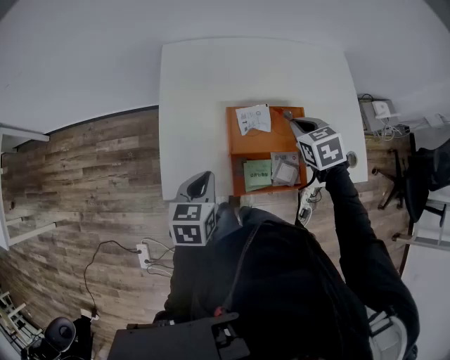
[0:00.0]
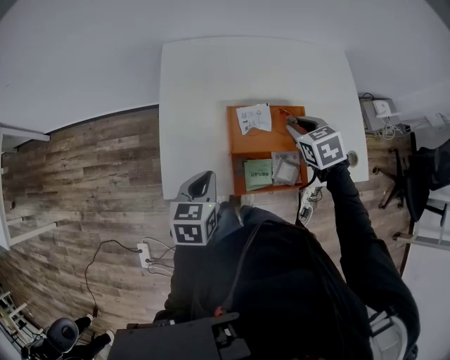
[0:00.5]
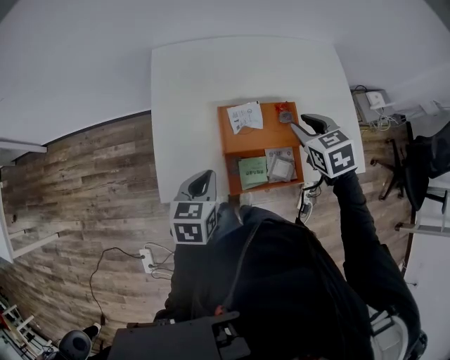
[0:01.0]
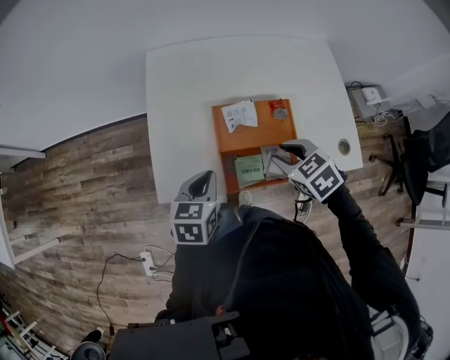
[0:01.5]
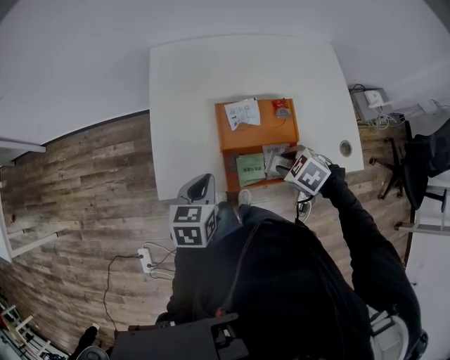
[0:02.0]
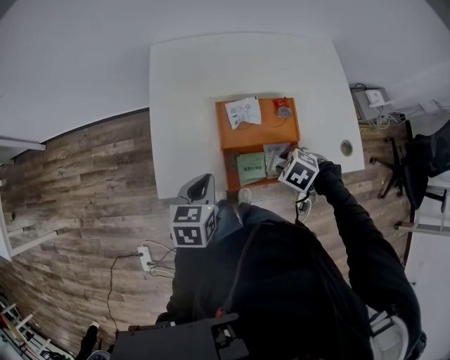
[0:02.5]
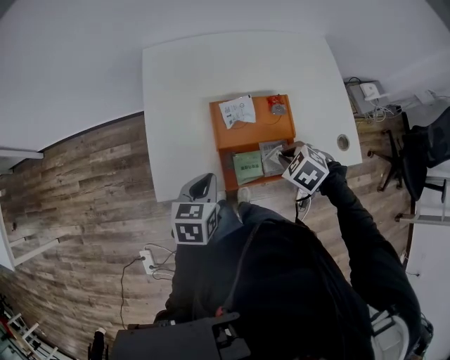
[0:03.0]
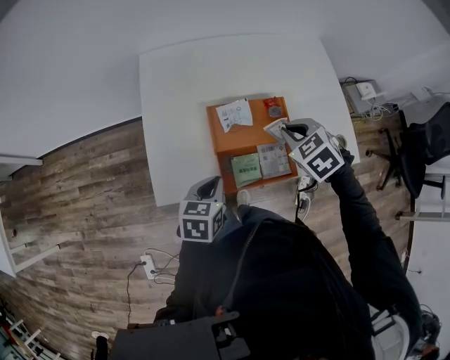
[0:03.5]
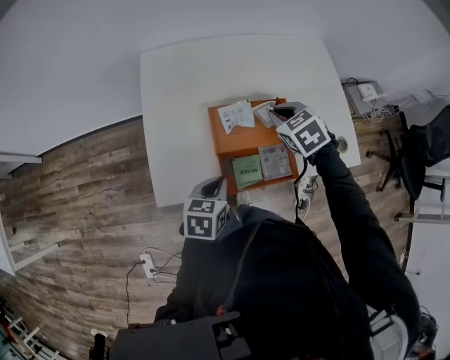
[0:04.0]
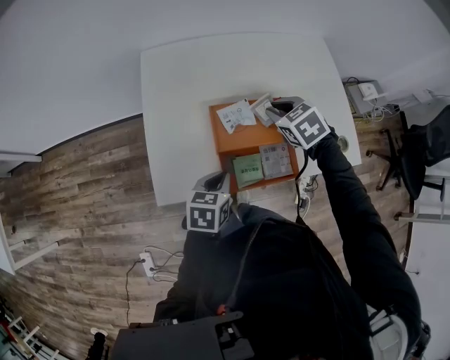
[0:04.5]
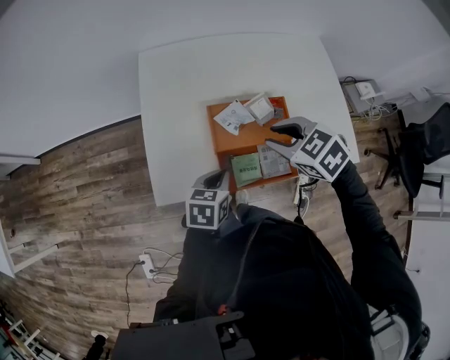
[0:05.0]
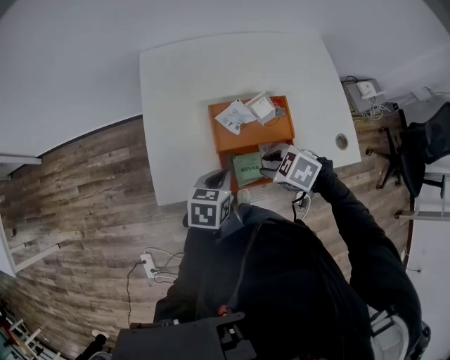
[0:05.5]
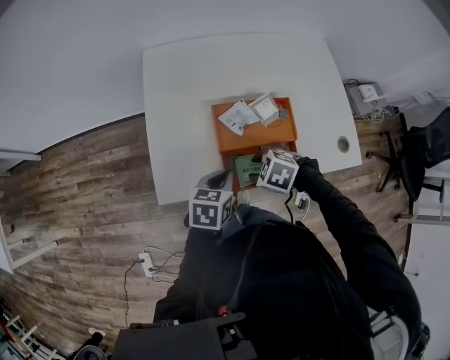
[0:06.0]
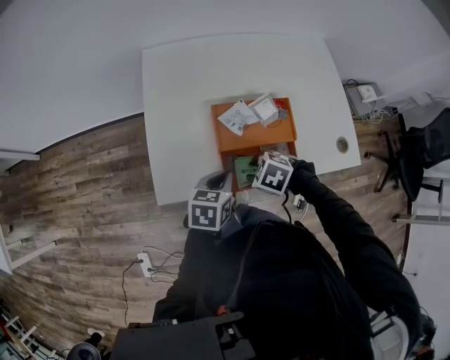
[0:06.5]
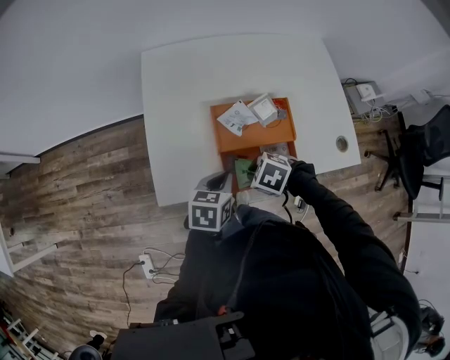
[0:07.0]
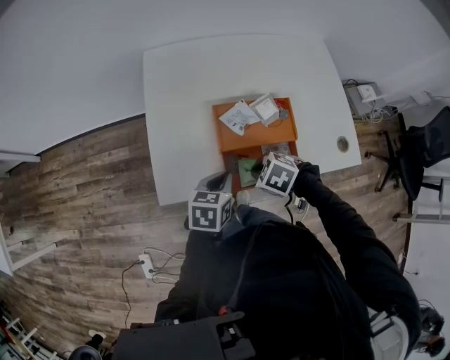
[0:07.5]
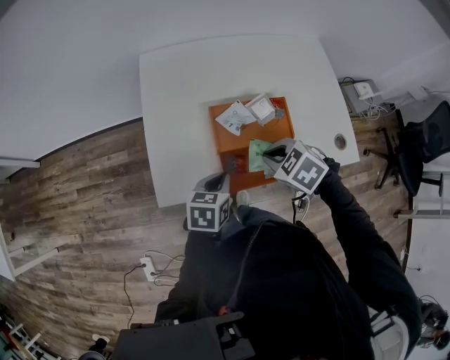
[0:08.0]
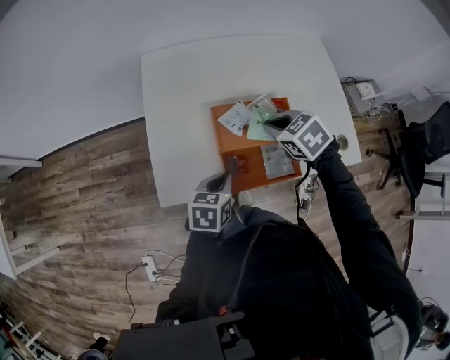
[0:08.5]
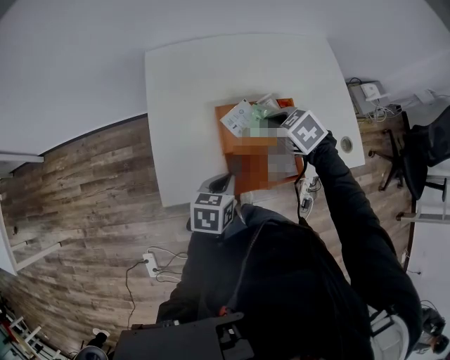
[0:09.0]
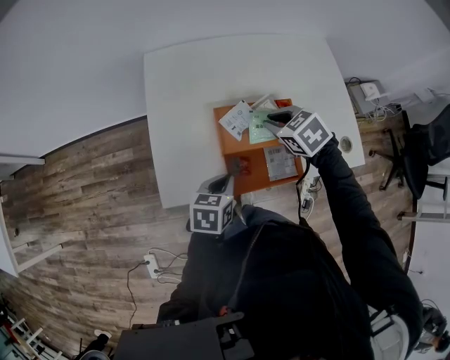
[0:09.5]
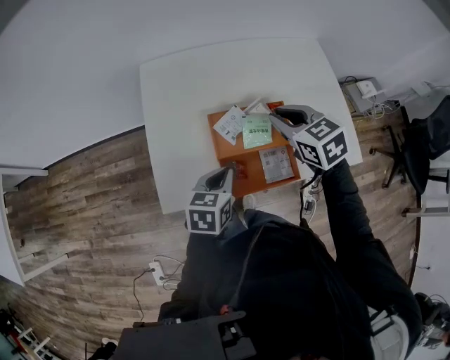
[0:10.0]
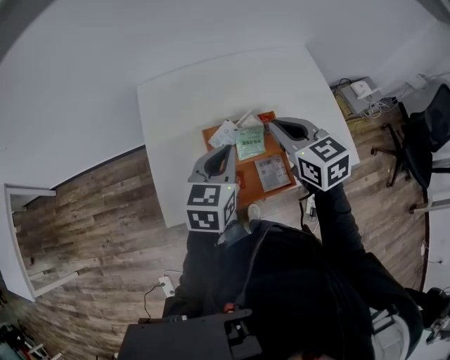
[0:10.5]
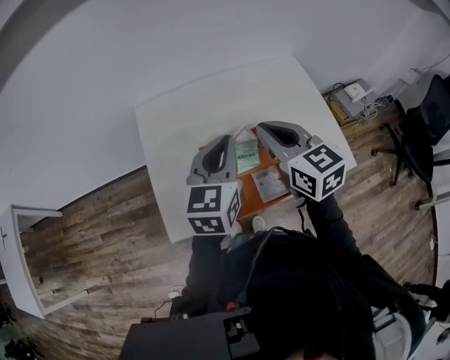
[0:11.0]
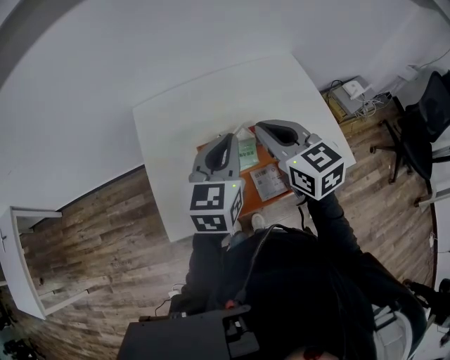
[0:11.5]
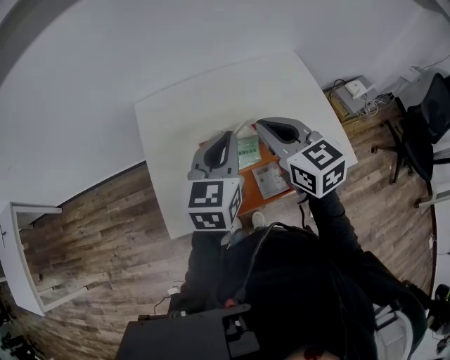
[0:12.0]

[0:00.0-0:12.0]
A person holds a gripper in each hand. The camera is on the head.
0:00.0 to 0:02.0: The right gripper shifts approximately 15 cm backward and downward, swivels approximately 30 degrees, and opens its fingers.
0:02.0 to 0:04.0: The left gripper moves roughly 5 cm, while the right gripper changes place by approximately 15 cm, changes its angle by about 30 degrees, and closes up.
0:04.0 to 0:06.0: The right gripper shifts by some 20 cm, turns by approximately 40 degrees, and opens its fingers.
0:06.0 to 0:08.0: The right gripper shifts about 10 cm upward, and closes up.
0:08.0 to 0:10.0: The right gripper travels forward and upward by roughly 15 cm, and rotates some 30 degrees. The left gripper shifts by approximately 5 cm.
0:10.0 to 0:12.0: The left gripper shifts about 20 cm upward and forward, and swivels roughly 30 degrees; the right gripper shifts some 10 cm upward, and changes its angle by approximately 20 degrees.

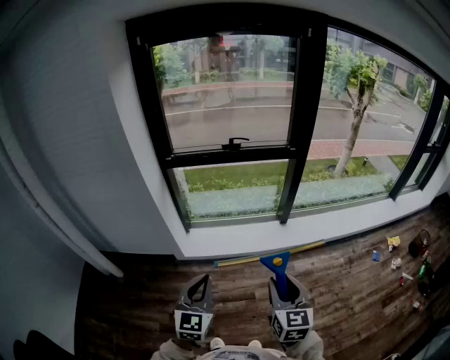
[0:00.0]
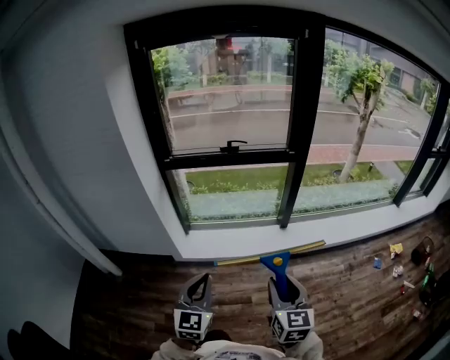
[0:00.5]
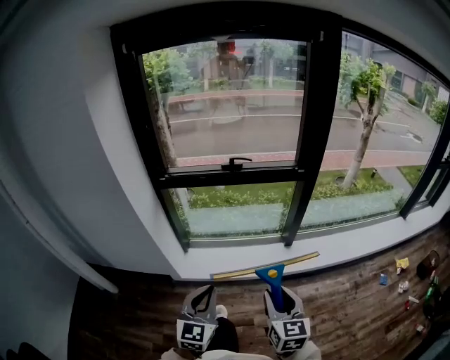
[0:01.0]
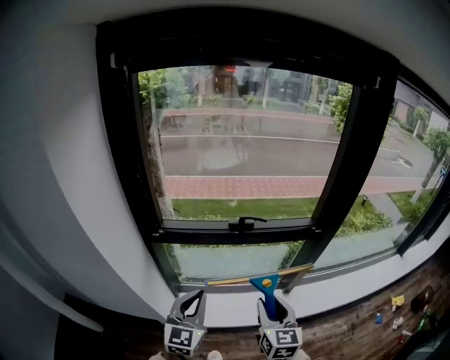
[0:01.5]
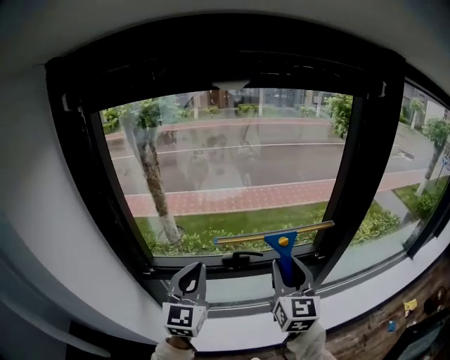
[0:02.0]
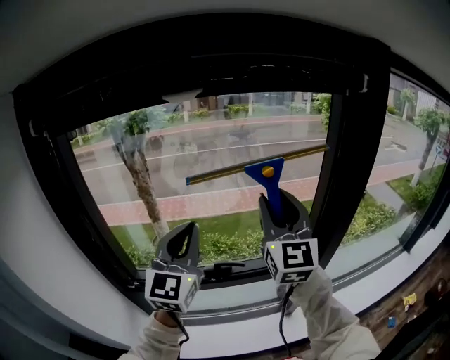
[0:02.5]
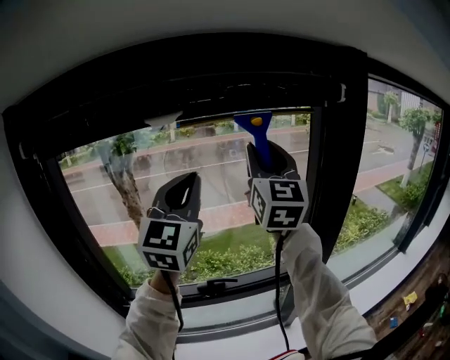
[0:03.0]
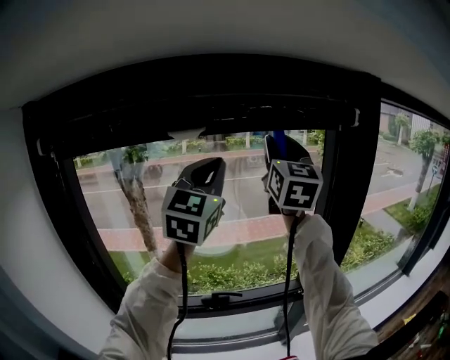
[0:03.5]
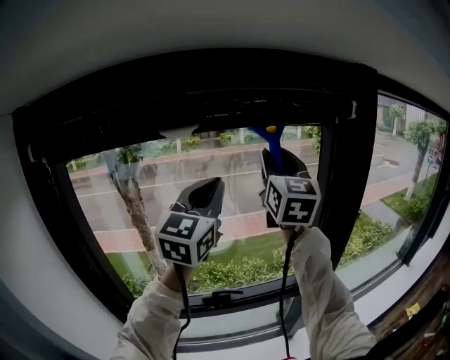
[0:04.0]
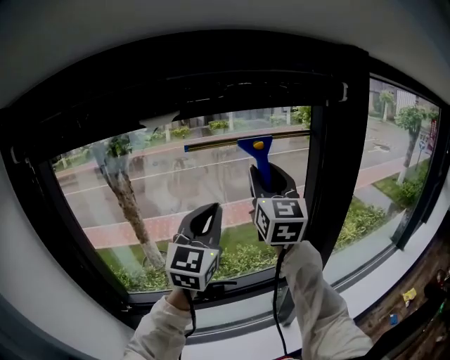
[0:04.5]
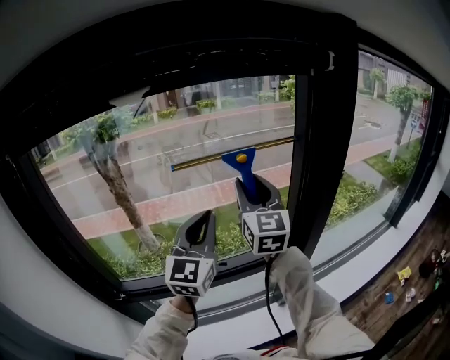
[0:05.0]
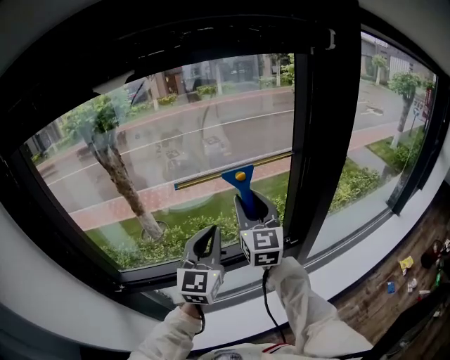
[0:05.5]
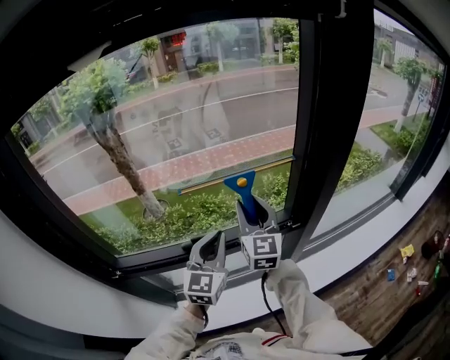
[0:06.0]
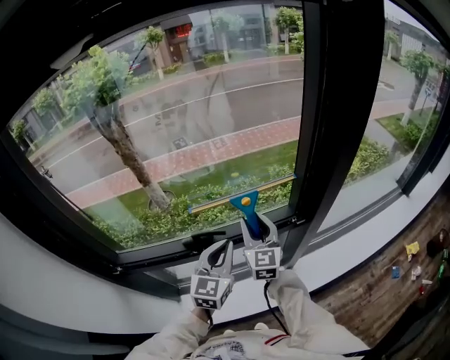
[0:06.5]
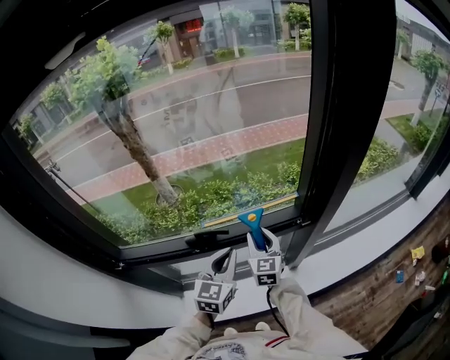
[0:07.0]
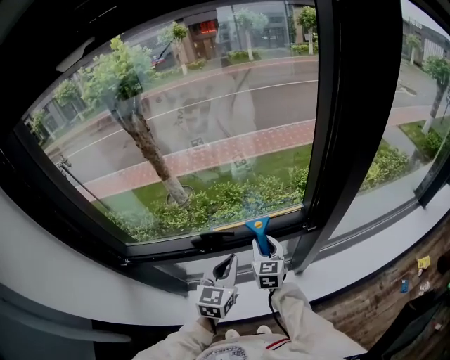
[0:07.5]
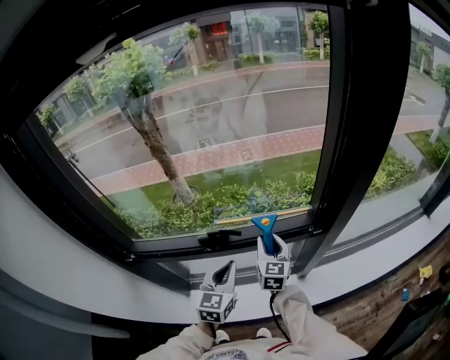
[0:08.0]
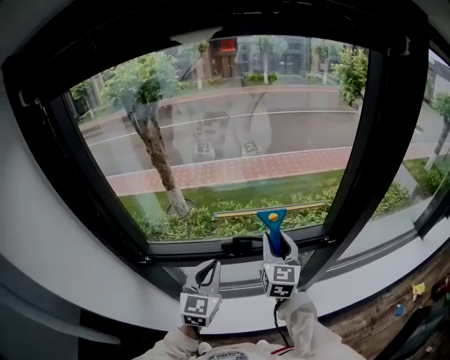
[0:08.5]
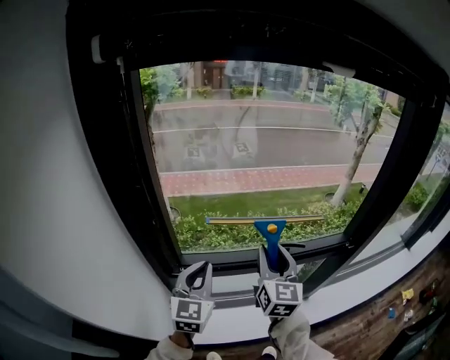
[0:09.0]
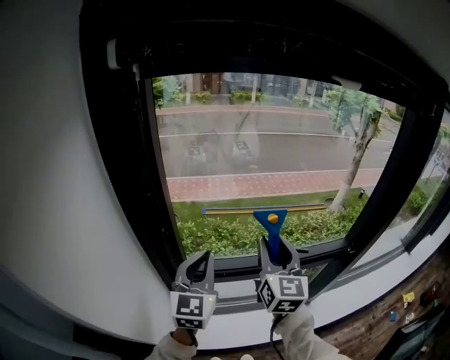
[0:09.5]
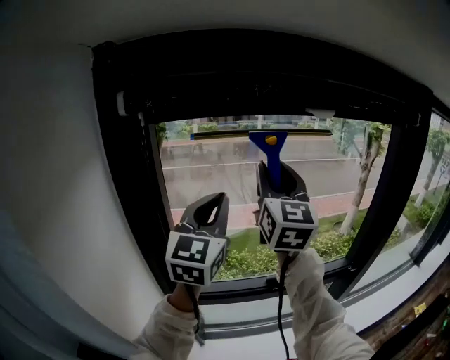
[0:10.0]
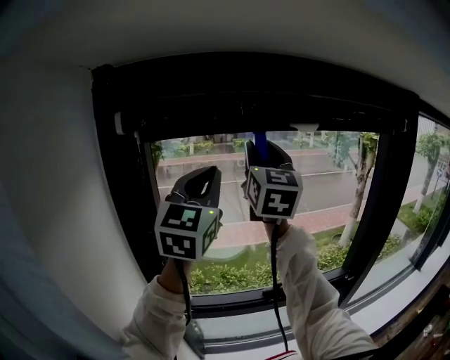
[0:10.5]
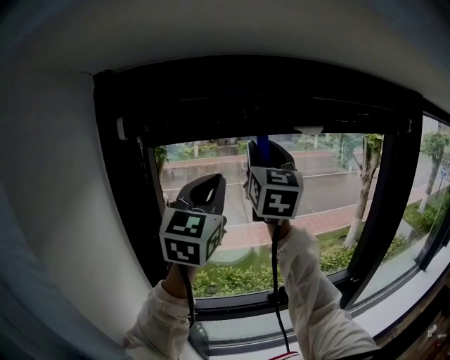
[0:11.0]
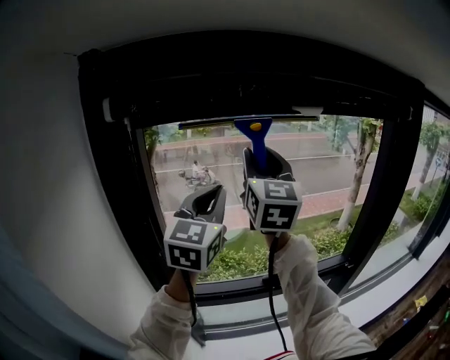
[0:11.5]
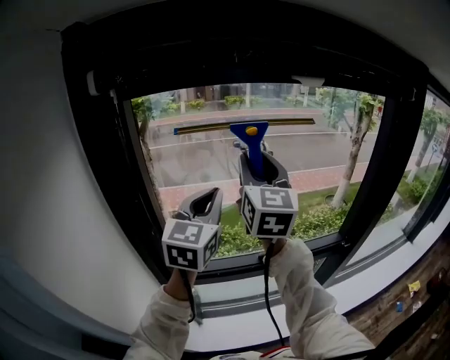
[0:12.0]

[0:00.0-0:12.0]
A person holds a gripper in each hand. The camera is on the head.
0:00.0 to 0:02.0: The two grippers travel together, forward, some 60 cm.
0:02.0 to 0:04.0: The left gripper goes approximately 35 cm upward, forward and to the right, and changes its angle by approximately 20 degrees, while the right gripper travels upward and forward by approximately 40 cm.
0:04.0 to 0:06.0: The two grippers go approximately 35 cm downward.
0:06.0 to 0:08.0: The left gripper travels downward and backward by about 15 cm. The right gripper shifts about 20 cm downward, and changes its angle by about 20 degrees.
0:08.0 to 0:10.0: Both grippers travel together upward and to the left, roughly 60 cm. The right gripper tips its fingers upward by approximately 30 degrees. The left gripper swivels roughly 30 degrees.
0:10.0 to 0:12.0: The two grippers go roughly 5 cm downward.

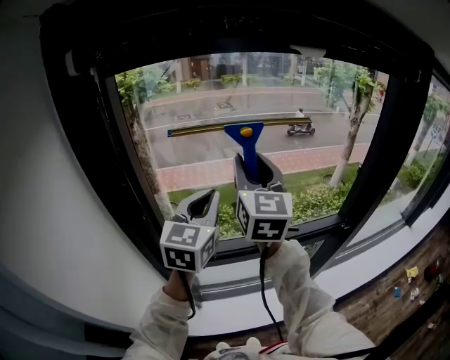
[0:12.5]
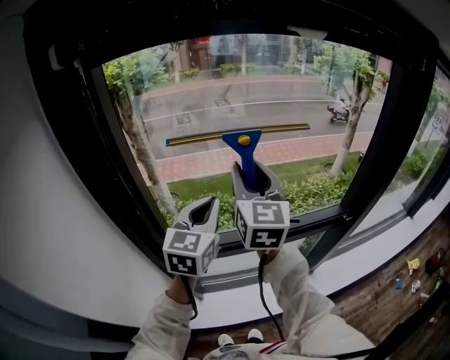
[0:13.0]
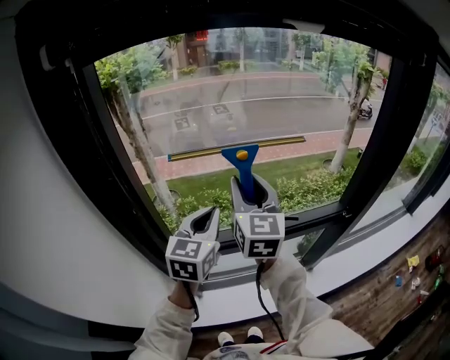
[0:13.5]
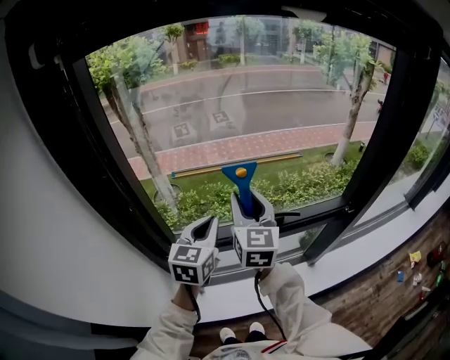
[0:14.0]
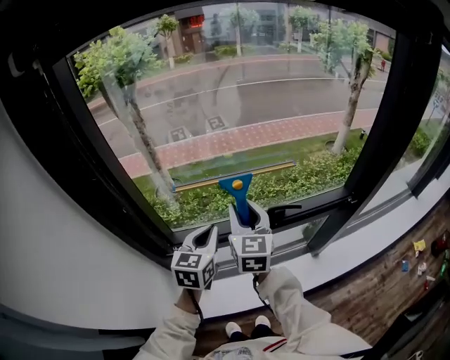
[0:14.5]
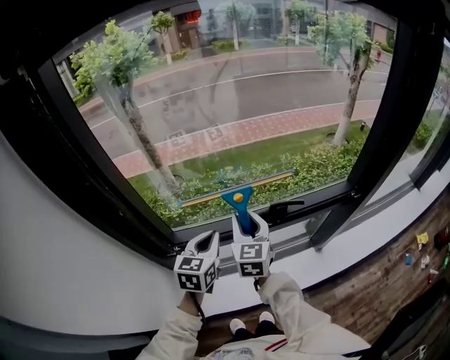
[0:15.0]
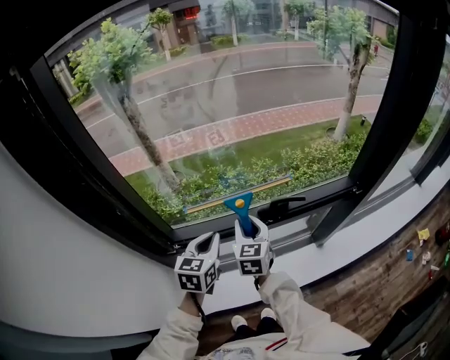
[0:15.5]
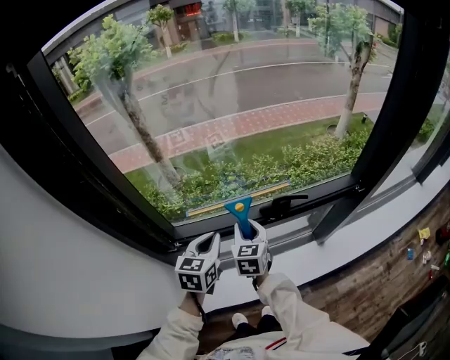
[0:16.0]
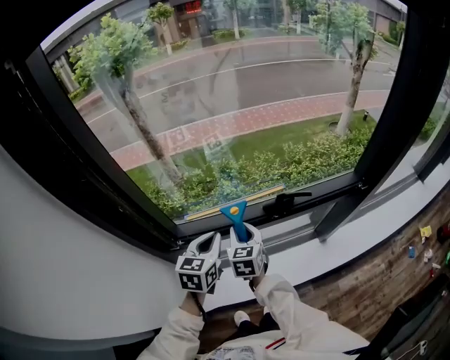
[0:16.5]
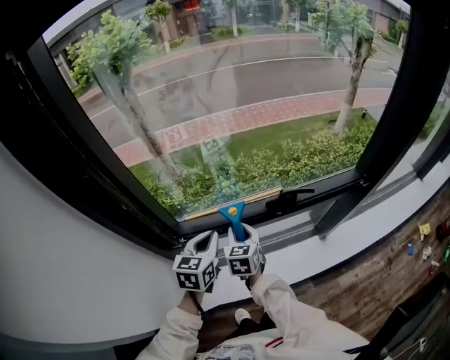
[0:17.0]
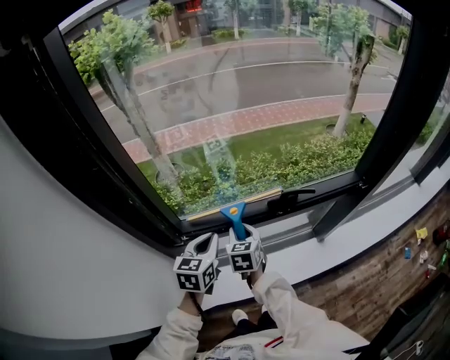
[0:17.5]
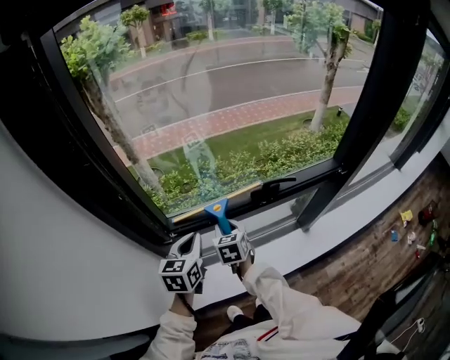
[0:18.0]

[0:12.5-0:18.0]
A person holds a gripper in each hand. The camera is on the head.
0:12.5 to 0:14.5: Both grippers travel together downward, some 25 cm.
0:14.5 to 0:16.0: The right gripper travels downward by about 15 cm. Meanwhile the left gripper travels downward by approximately 5 cm.
0:16.0 to 0:18.0: The grippers both shift to the left by approximately 5 cm.
